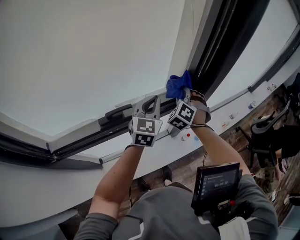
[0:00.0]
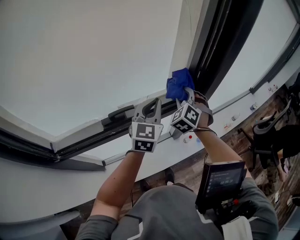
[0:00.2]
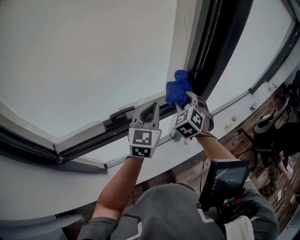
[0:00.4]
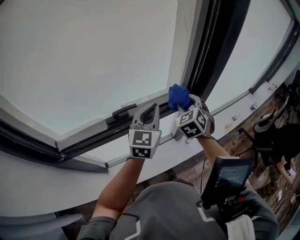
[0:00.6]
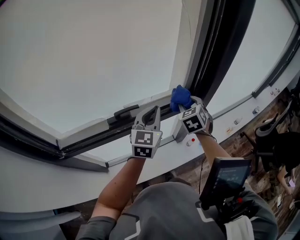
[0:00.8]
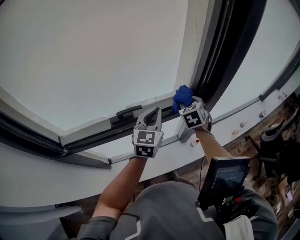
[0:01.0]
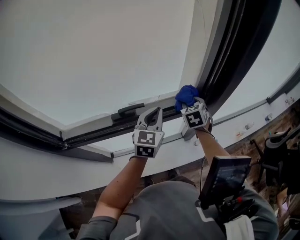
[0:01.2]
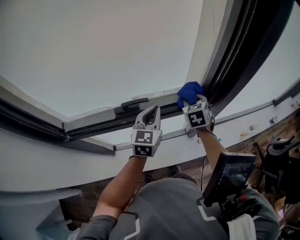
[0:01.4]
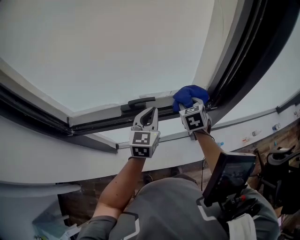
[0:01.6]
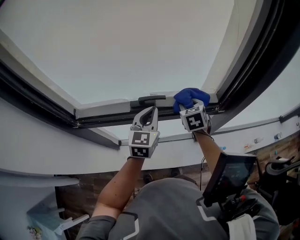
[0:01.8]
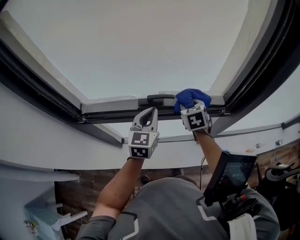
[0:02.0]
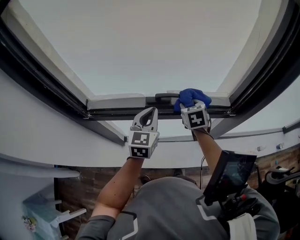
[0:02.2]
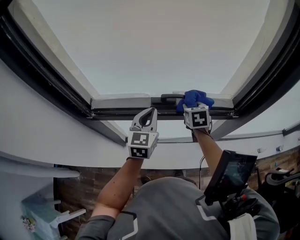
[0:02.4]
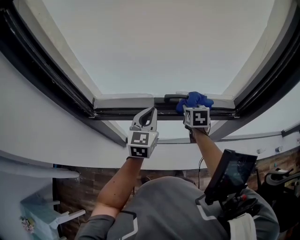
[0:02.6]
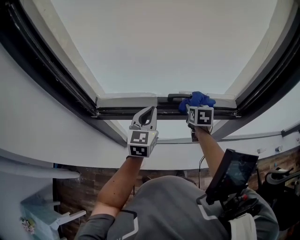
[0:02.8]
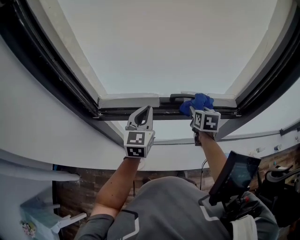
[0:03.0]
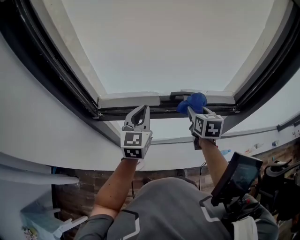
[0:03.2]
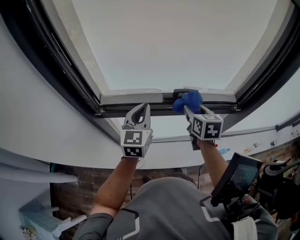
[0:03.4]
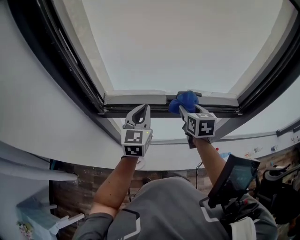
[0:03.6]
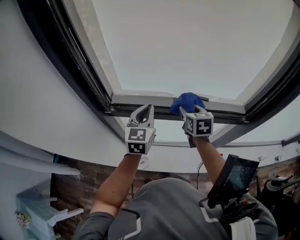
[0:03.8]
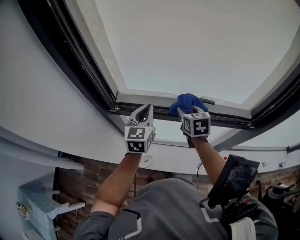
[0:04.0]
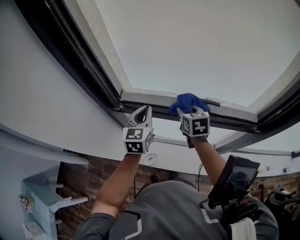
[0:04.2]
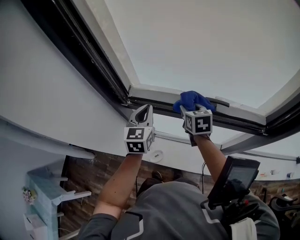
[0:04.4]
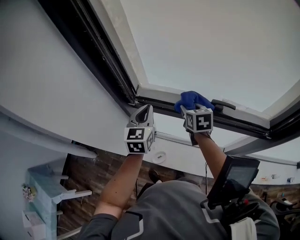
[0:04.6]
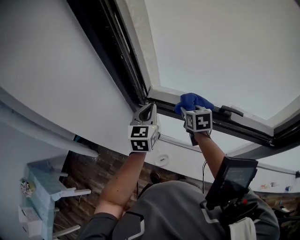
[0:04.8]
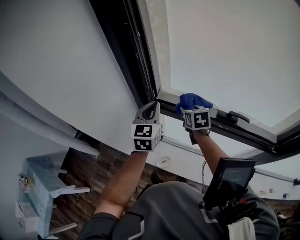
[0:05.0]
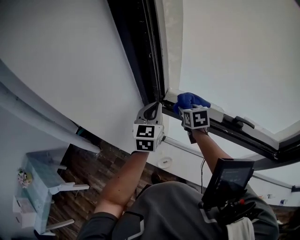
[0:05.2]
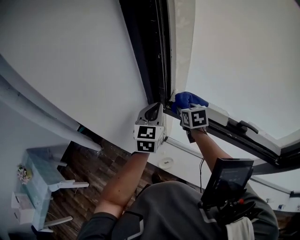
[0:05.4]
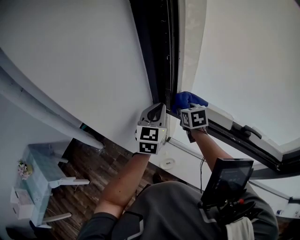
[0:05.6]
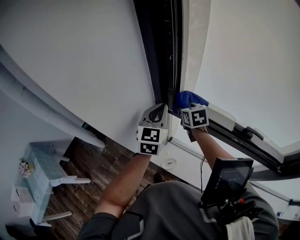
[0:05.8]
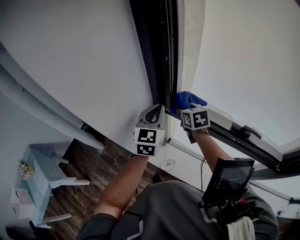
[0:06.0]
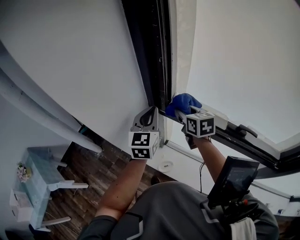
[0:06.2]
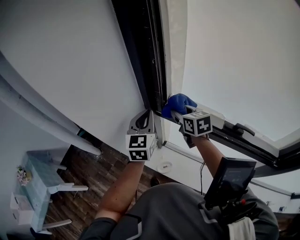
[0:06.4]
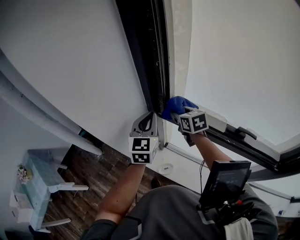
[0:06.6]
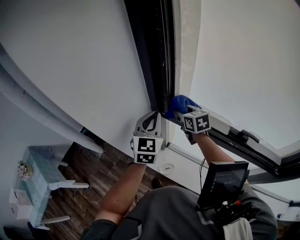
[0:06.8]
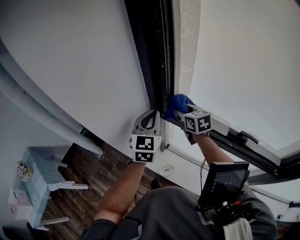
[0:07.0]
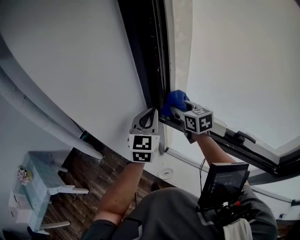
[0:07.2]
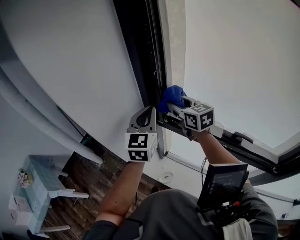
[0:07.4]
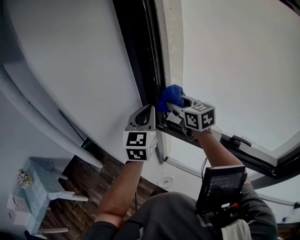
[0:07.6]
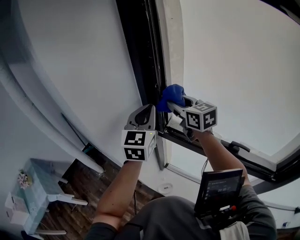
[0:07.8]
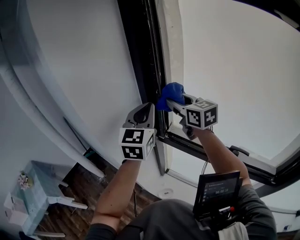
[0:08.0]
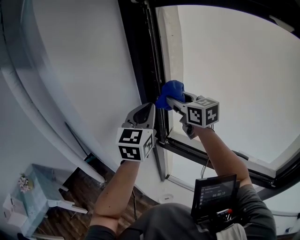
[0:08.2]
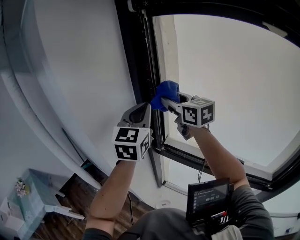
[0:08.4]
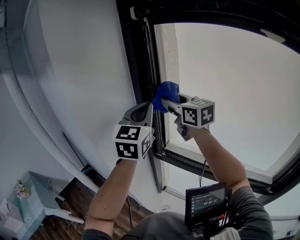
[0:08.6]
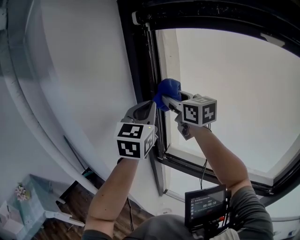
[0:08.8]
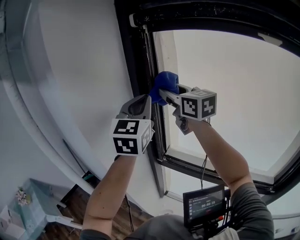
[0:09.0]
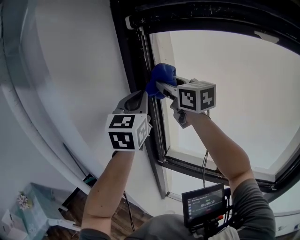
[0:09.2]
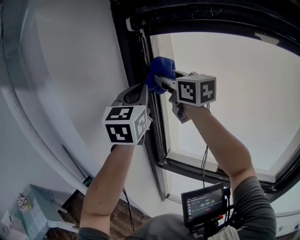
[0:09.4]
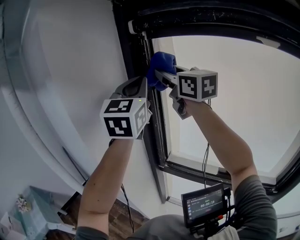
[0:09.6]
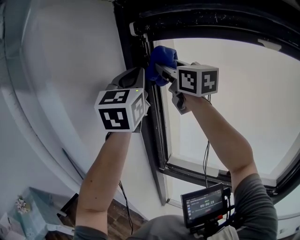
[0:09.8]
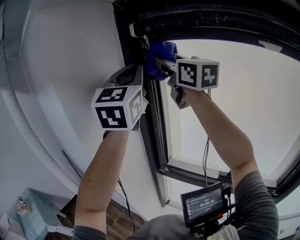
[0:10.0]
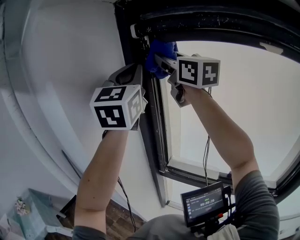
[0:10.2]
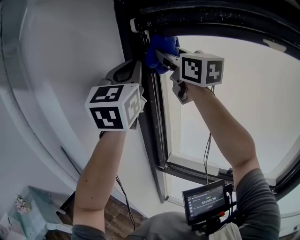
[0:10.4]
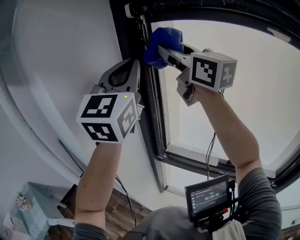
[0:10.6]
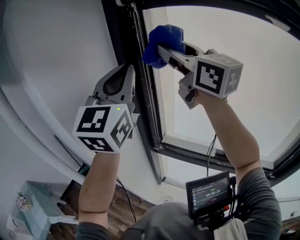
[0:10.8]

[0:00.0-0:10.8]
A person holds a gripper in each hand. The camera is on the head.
0:00.0 to 0:01.6: The right gripper shifts by roughly 10 cm, and swivels roughly 50 degrees, while the left gripper moves about 10 cm, and turns by some 20 degrees.
0:01.6 to 0:03.0: The right gripper moves to the left, about 15 cm; the left gripper moves to the left, about 20 cm.
0:03.0 to 0:04.6: Both grippers travel together to the left, roughly 20 cm. The right gripper turns by roughly 30 degrees.
0:04.6 to 0:06.2: Both grippers move to the left, approximately 15 cm. The right gripper swivels approximately 20 degrees.
0:06.2 to 0:07.8: Both grippers travel together upward, about 15 cm. The right gripper changes its angle by roughly 30 degrees.
0:07.8 to 0:09.2: Both grippers move upward, some 20 cm.
0:09.2 to 0:10.8: The right gripper goes roughly 5 cm upward; the left gripper goes upward and returns, approximately 10 cm each way.

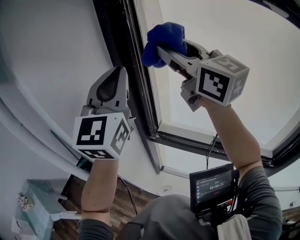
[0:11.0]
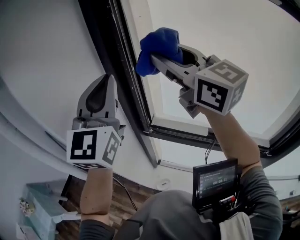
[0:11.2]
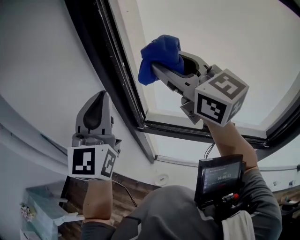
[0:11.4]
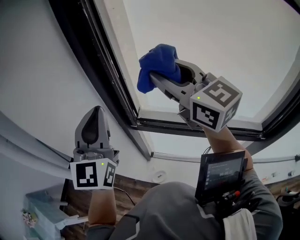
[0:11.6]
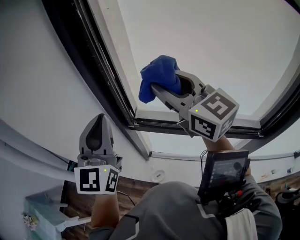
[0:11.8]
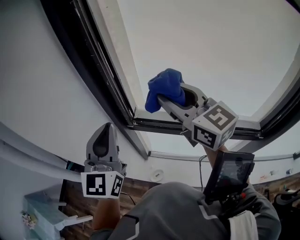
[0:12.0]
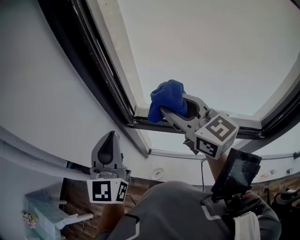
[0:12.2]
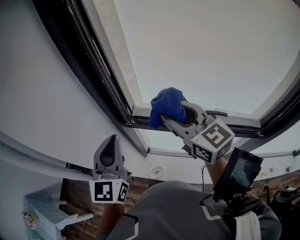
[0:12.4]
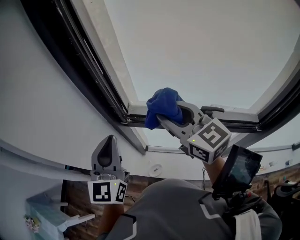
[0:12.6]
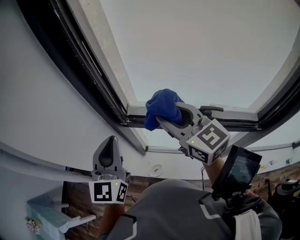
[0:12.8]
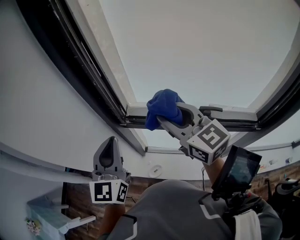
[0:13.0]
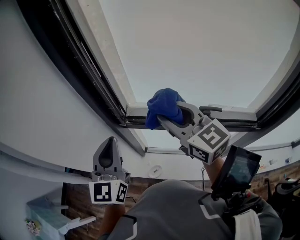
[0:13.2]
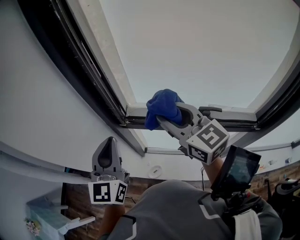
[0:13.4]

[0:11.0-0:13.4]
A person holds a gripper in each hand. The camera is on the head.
0:11.0 to 0:12.2: The two grippers go approximately 20 cm downward. The right gripper swivels some 20 degrees.
0:12.2 to 0:13.4: The grippers make only small movements.

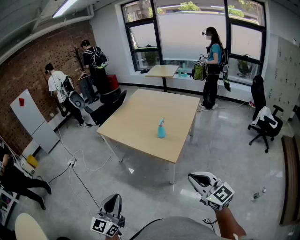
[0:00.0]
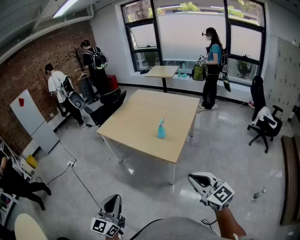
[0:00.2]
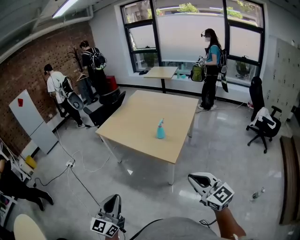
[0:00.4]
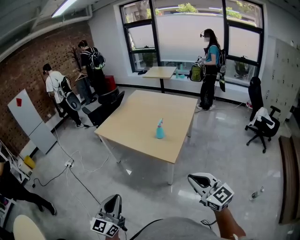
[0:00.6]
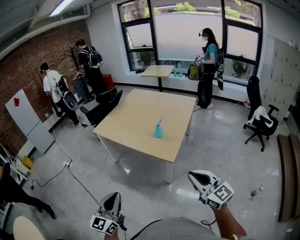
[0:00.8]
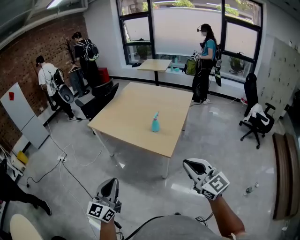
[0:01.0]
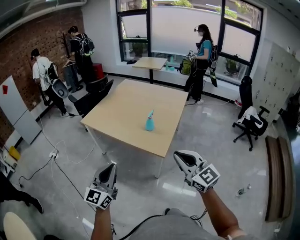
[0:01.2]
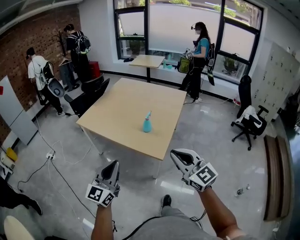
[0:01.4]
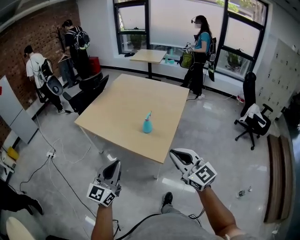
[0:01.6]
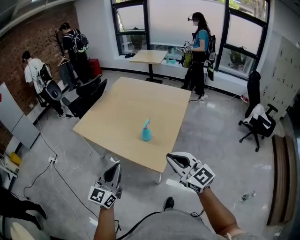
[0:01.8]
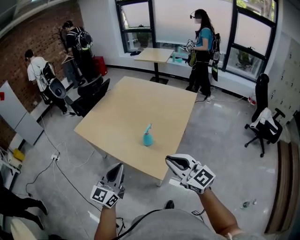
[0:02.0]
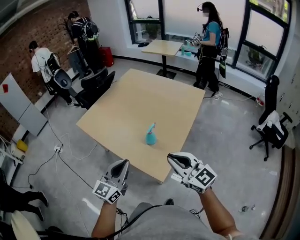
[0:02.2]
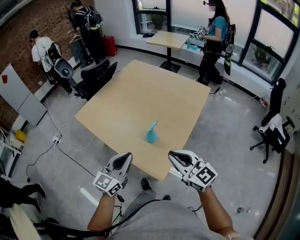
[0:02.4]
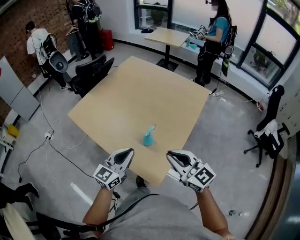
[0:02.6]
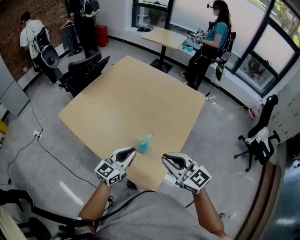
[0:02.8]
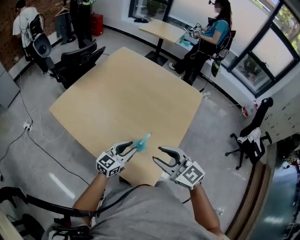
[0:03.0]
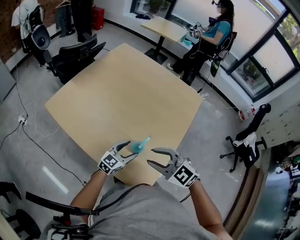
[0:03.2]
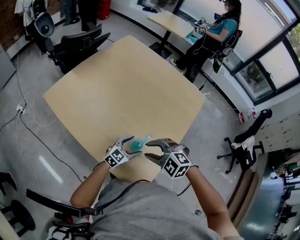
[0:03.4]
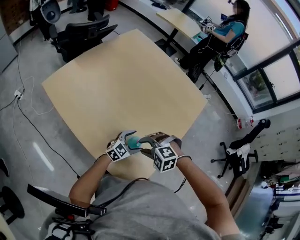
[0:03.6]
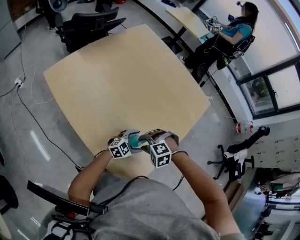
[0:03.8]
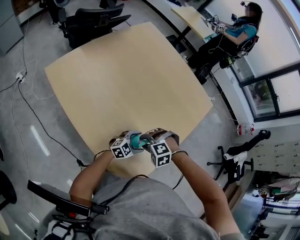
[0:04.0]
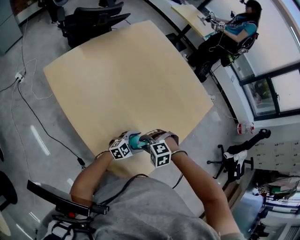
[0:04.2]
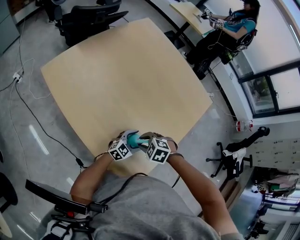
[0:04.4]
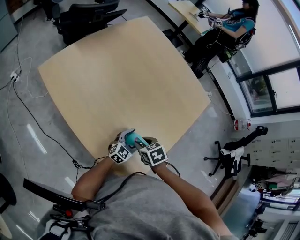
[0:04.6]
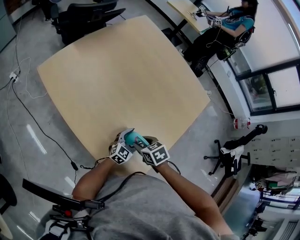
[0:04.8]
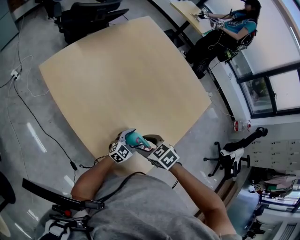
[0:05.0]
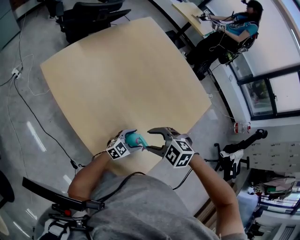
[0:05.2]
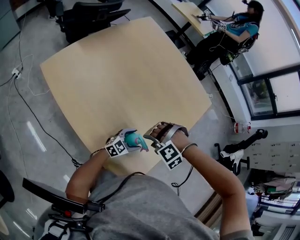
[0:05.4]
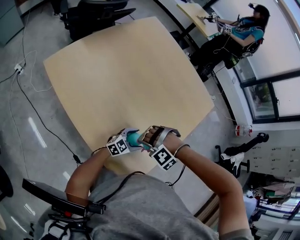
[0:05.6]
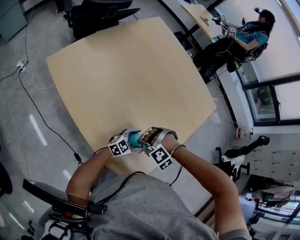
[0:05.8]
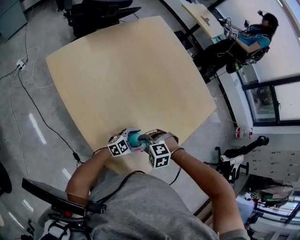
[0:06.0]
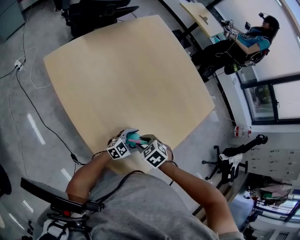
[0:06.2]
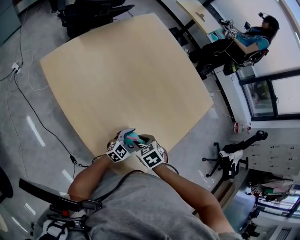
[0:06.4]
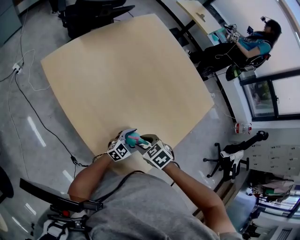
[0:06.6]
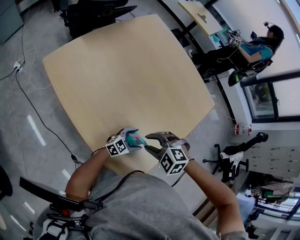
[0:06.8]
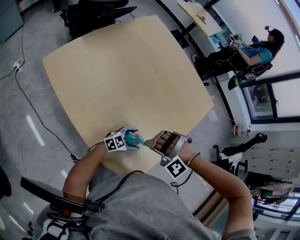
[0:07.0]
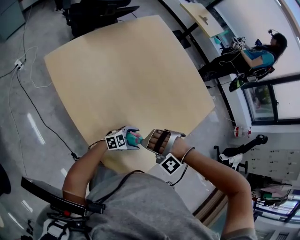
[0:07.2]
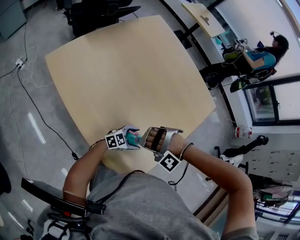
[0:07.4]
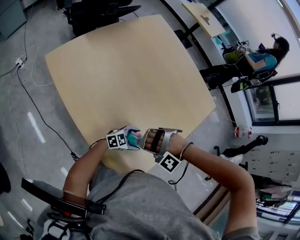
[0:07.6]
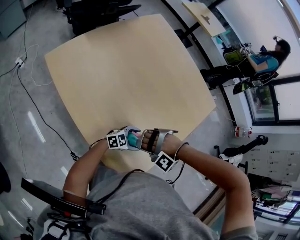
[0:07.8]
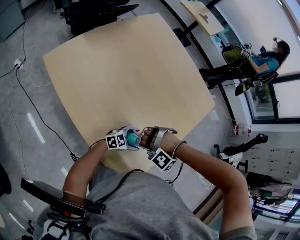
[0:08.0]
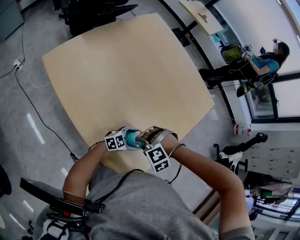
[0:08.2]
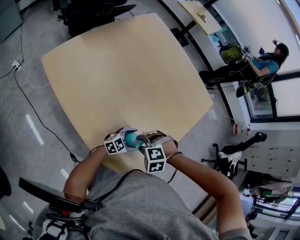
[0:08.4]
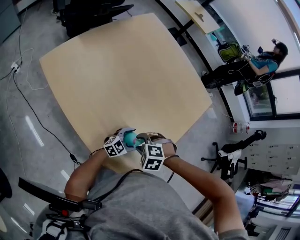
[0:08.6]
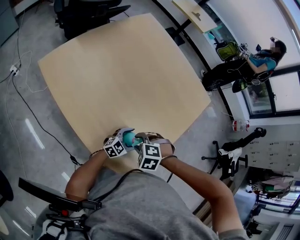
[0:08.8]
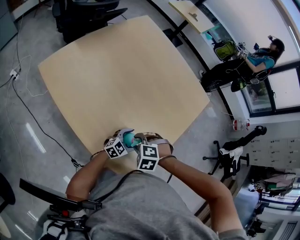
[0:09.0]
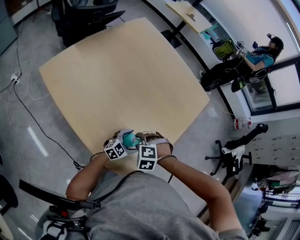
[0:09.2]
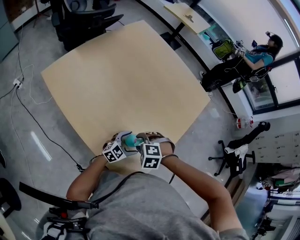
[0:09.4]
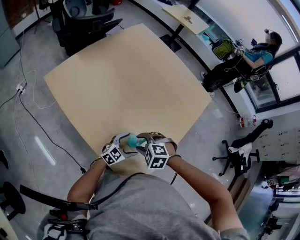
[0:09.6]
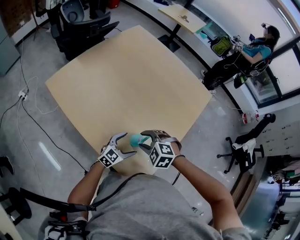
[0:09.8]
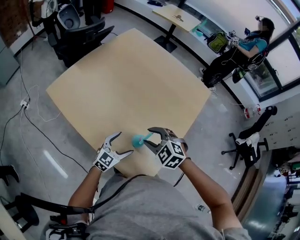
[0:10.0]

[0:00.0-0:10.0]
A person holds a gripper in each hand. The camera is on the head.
0:00.0 to 0:01.4: The grippers both shift forward by roughly 15 cm.
0:01.4 to 0:02.8: The pair of grippers is taken forward, about 40 cm. The right gripper changes its angle by about 20 degrees. Meanwhile the left gripper changes its angle by roughly 20 degrees.
0:02.8 to 0:04.2: Both grippers travel together downward, roughly 30 cm. The left gripper turns by roughly 30 degrees, and opens up; the right gripper points its fingers some 70 degrees further downward, and opens its fingers.
0:04.2 to 0:05.8: The right gripper moves roughly 10 cm upward and comes back, turns by roughly 30 degrees, and opens, then closes once more.
0:05.8 to 0:07.2: The right gripper travels upward by approximately 5 cm, and swivels about 30 degrees.
0:07.2 to 0:08.6: The right gripper rotates around the line of its fingers by approximately 70 degrees, clockwise from behind.
0:08.6 to 0:10.0: The right gripper moves upward, about 10 cm, and swivels about 40 degrees. Meanwhile the left gripper shifts by some 15 cm.
